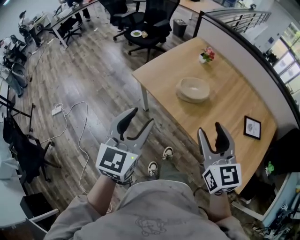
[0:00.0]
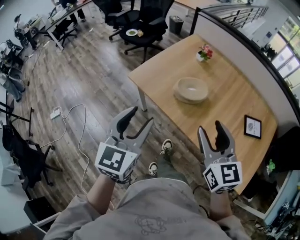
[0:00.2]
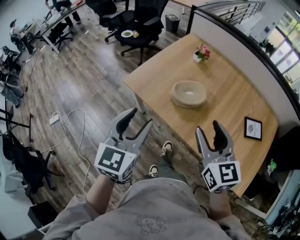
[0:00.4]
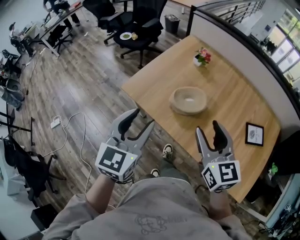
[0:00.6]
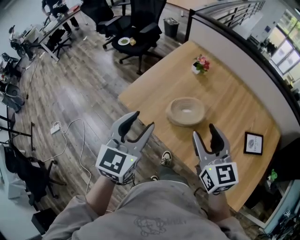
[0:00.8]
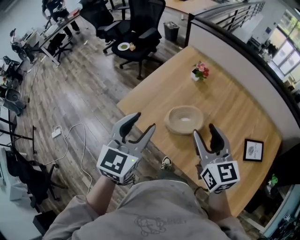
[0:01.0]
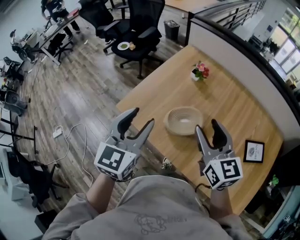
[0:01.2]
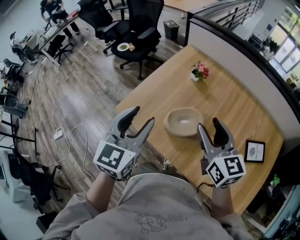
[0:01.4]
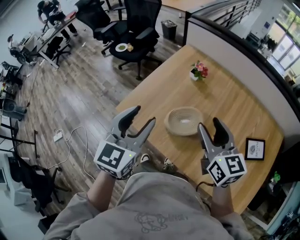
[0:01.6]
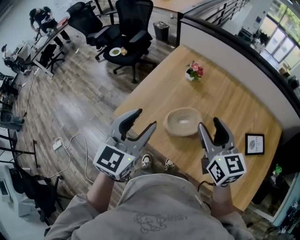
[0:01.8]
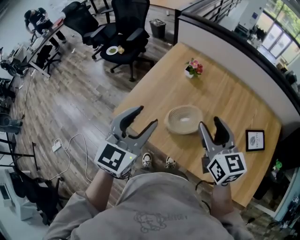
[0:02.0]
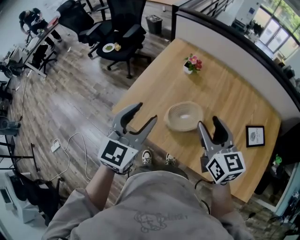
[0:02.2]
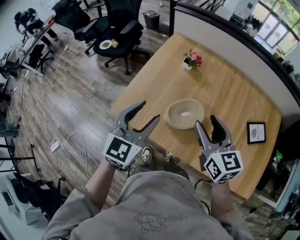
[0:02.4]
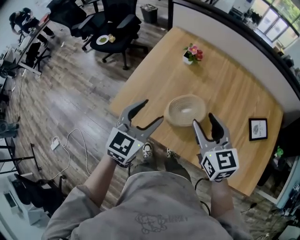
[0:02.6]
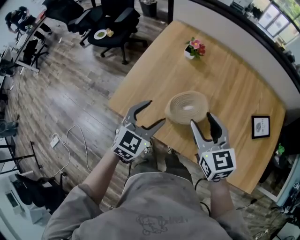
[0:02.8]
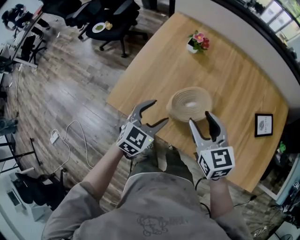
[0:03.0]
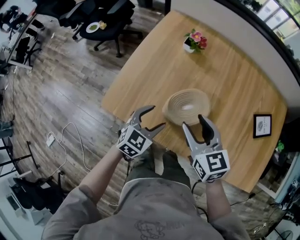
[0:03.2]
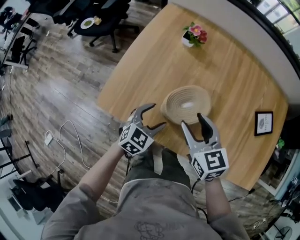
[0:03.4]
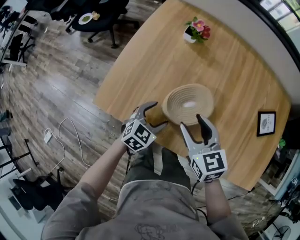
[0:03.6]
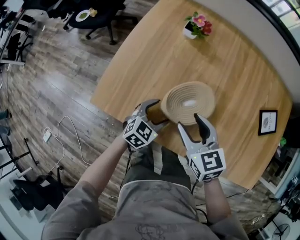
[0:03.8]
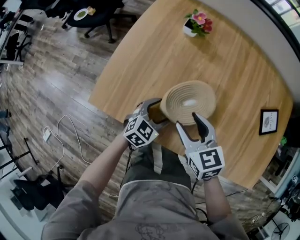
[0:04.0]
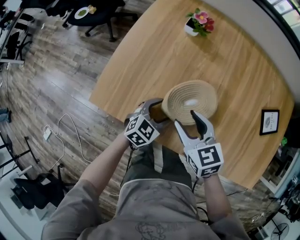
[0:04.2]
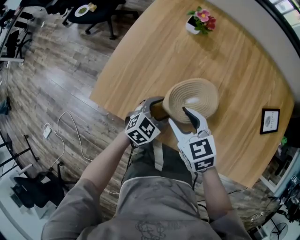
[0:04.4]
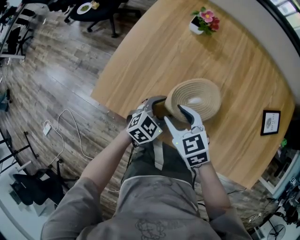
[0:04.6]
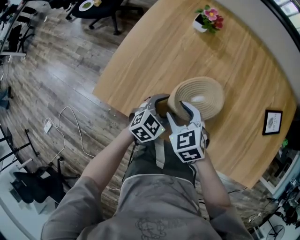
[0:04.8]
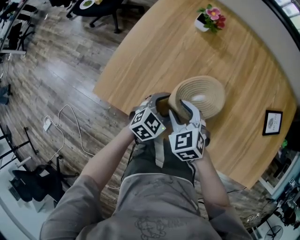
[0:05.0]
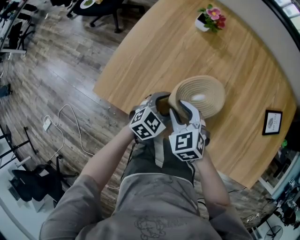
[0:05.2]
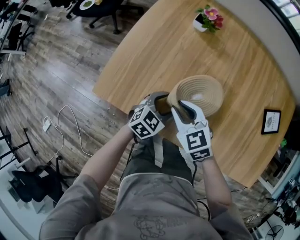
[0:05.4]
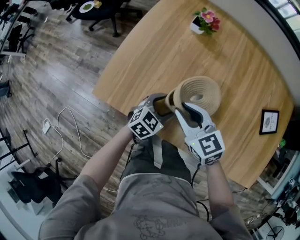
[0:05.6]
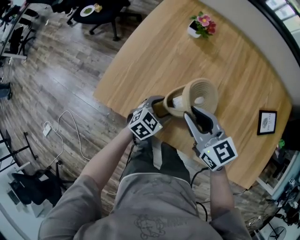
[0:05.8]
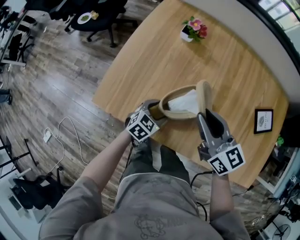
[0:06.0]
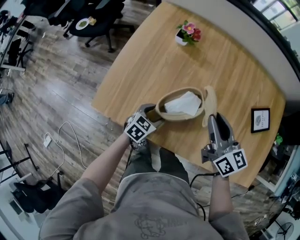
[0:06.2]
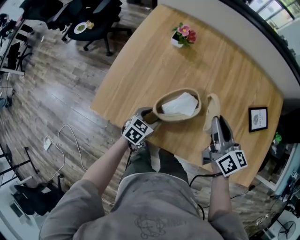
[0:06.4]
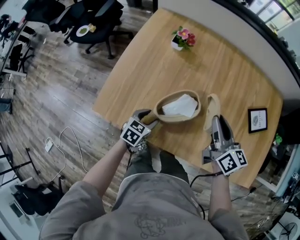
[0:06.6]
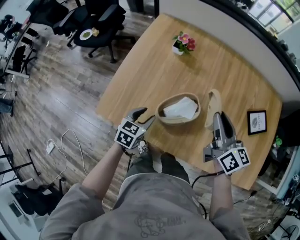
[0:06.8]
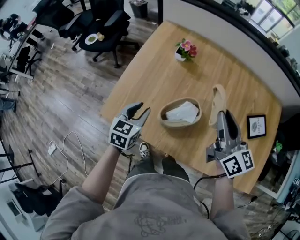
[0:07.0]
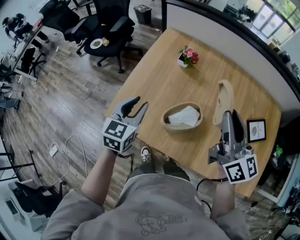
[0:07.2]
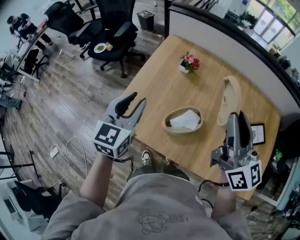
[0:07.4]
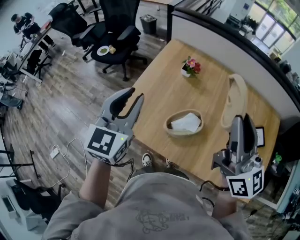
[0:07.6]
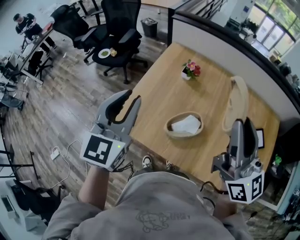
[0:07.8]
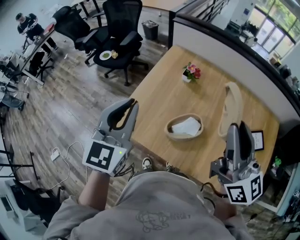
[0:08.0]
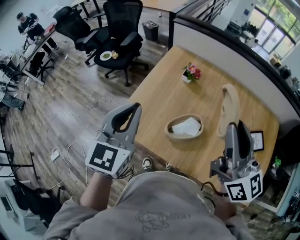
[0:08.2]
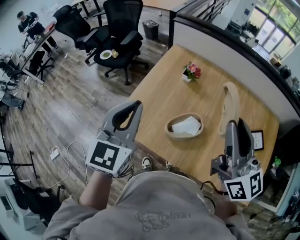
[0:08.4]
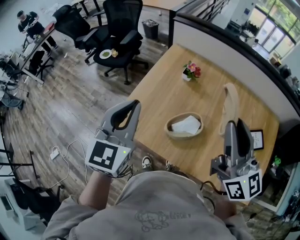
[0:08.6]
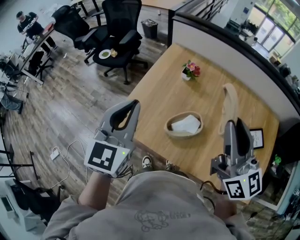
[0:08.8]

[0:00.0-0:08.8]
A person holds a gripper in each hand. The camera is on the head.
0:00.0 to 0:01.4: Both grippers move forward, some 25 cm.
0:01.4 to 0:03.0: The left gripper moves downward, approximately 20 cm, and rotates approximately 30 degrees. The right gripper is displaced downward and to the left by approximately 15 cm.
0:03.0 to 0:04.4: The right gripper moves downward and to the left, approximately 15 cm; the left gripper shifts approximately 15 cm downward.
0:04.4 to 0:05.8: The right gripper travels upward by some 5 cm, turns by roughly 20 degrees, and closes up.
0:05.8 to 0:07.4: The left gripper is displaced upward by approximately 35 cm, rotates about 40 degrees, and closes up; the right gripper goes some 30 cm upward and to the right, and angles its fingers upward, by roughly 30 degrees.
0:07.4 to 0:08.8: The left gripper is displaced upward by about 10 cm, and closes.

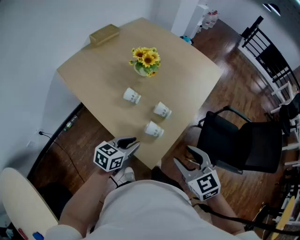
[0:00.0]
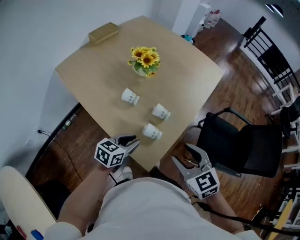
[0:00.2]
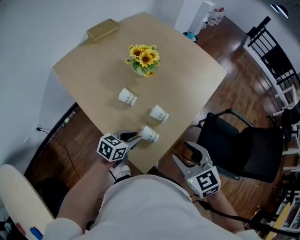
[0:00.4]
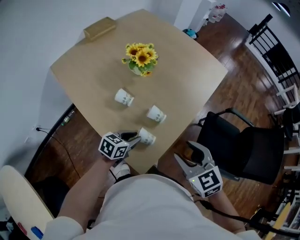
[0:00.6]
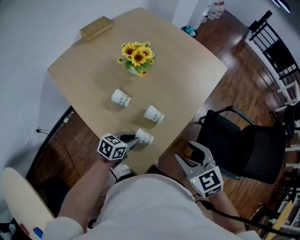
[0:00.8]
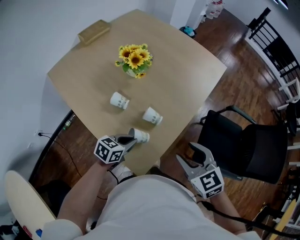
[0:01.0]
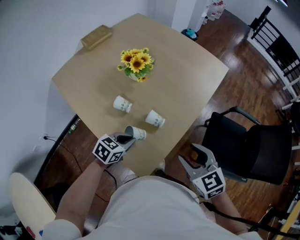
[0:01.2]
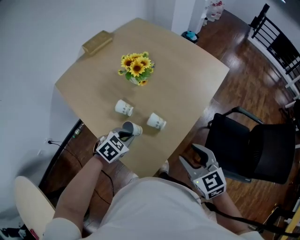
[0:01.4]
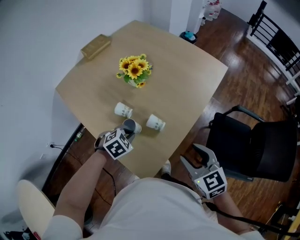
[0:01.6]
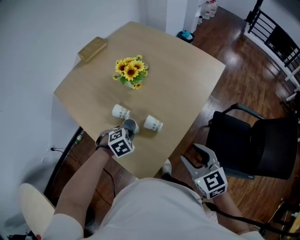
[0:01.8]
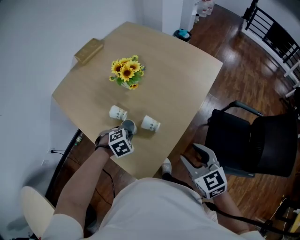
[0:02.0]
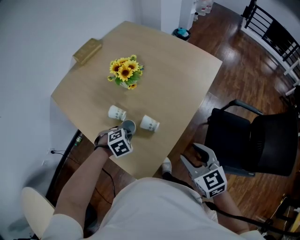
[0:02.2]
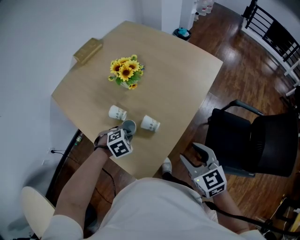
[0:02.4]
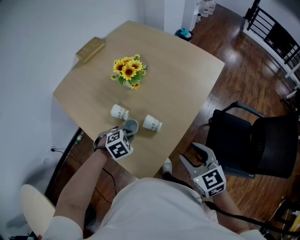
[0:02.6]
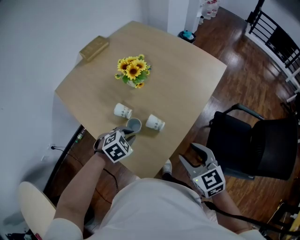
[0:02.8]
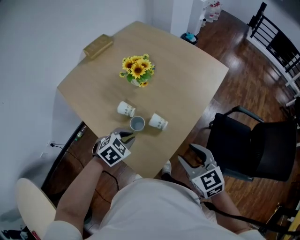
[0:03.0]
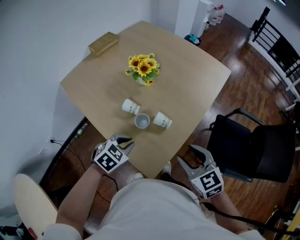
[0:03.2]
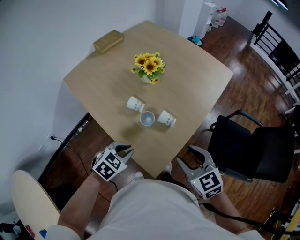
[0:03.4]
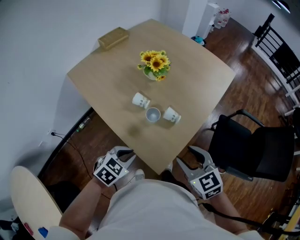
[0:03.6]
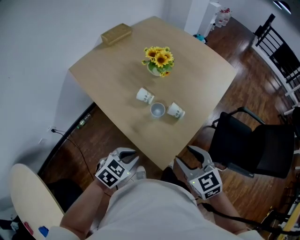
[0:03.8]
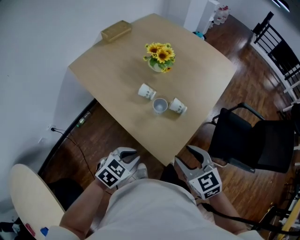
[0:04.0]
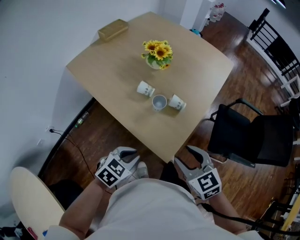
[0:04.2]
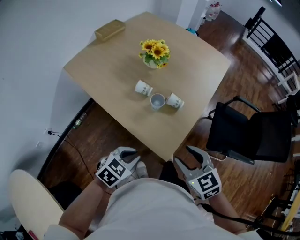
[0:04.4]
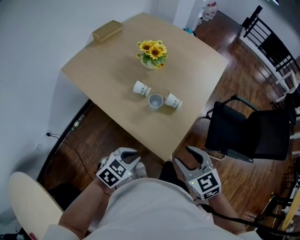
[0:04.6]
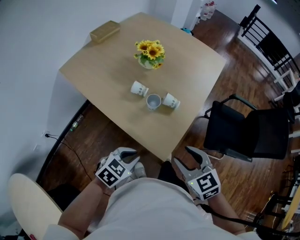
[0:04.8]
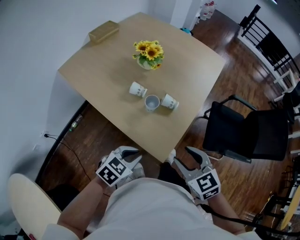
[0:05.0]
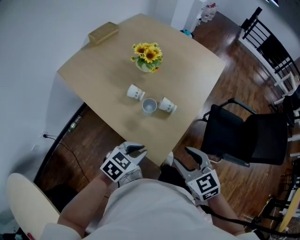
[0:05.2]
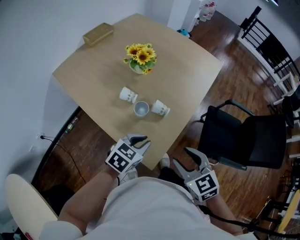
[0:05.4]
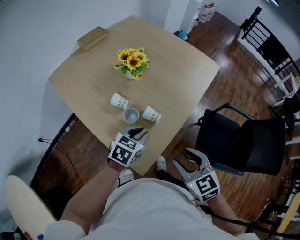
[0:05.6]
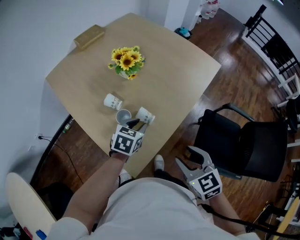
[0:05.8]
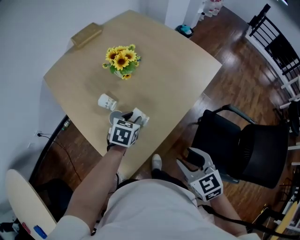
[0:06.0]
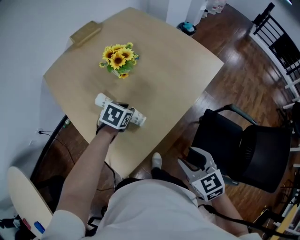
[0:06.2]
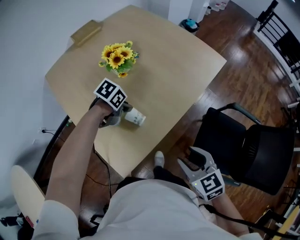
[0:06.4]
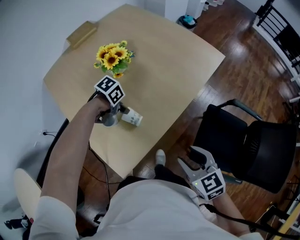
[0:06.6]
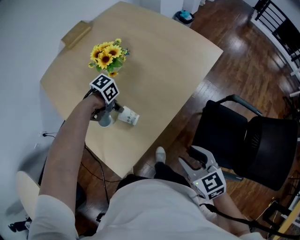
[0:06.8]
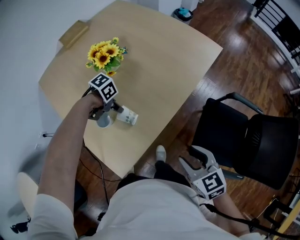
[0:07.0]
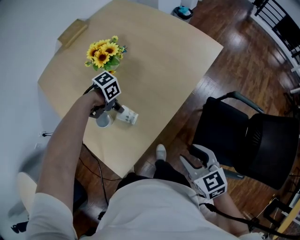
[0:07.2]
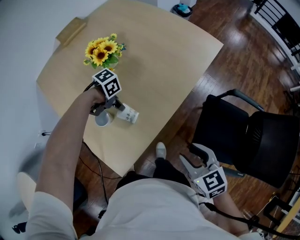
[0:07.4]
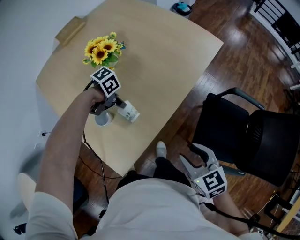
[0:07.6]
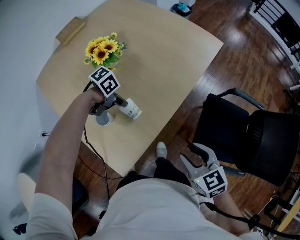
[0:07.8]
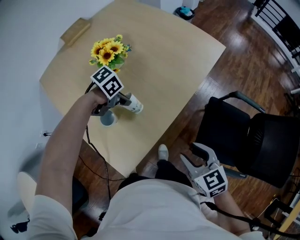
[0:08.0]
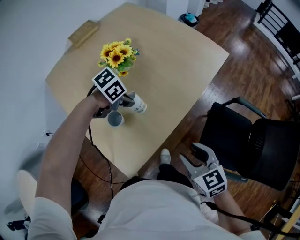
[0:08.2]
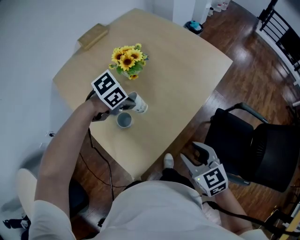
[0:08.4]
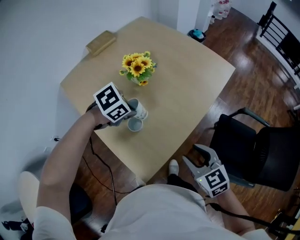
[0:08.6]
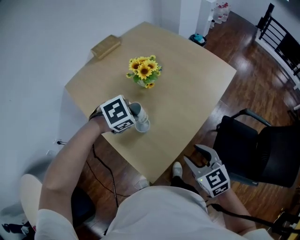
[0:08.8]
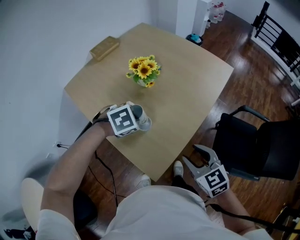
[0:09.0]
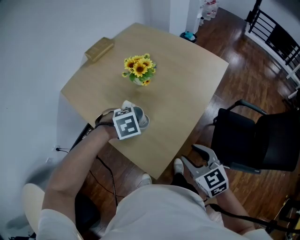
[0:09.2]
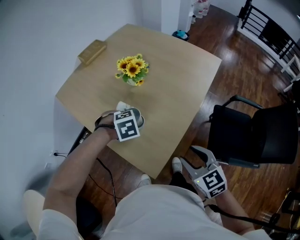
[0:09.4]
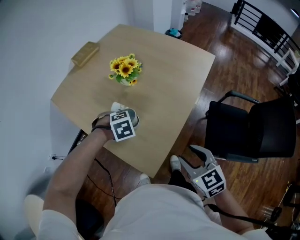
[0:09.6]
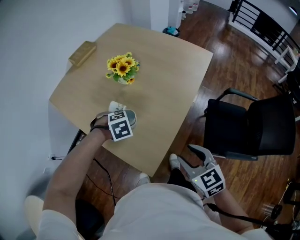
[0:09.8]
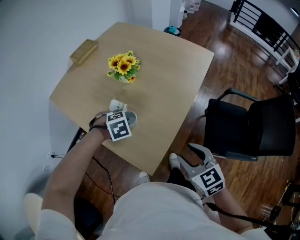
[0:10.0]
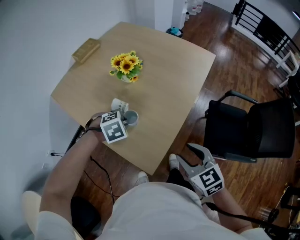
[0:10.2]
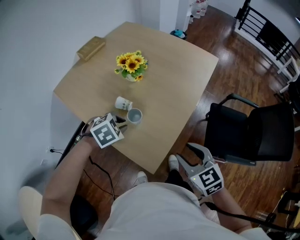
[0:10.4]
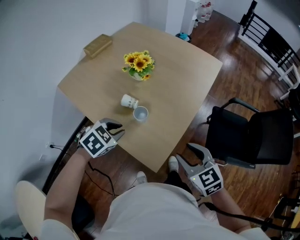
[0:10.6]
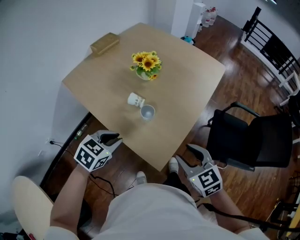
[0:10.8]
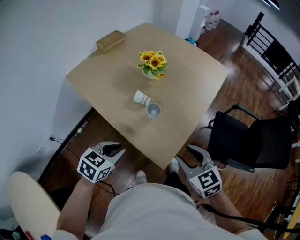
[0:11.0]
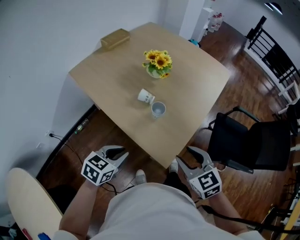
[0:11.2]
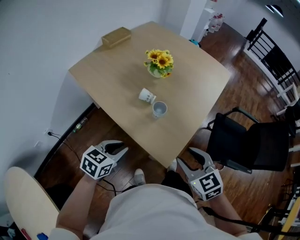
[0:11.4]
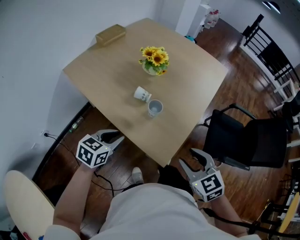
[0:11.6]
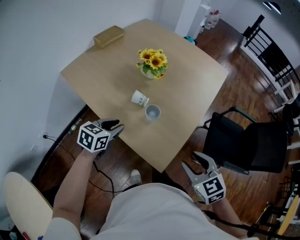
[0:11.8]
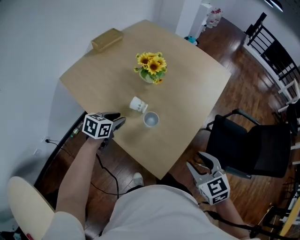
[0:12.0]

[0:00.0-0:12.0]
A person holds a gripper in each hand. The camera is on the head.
0:00.0 to 0:01.6: The right gripper travels forward and to the right by some 15 cm, while the left gripper is displaced forward by about 15 cm, and tips its fingers downward by roughly 40 degrees.
0:01.6 to 0:03.0: The grippers stay close to where they were, moving slightly.
0:03.0 to 0:04.4: The left gripper moves backward, approximately 20 cm, while the right gripper goes roughly 15 cm backward and to the left.
0:04.4 to 0:06.0: The left gripper shifts some 35 cm forward and to the right, changes its angle by roughly 30 degrees, and opens up; the right gripper heads to the right and forward, covering some 25 cm.
0:06.0 to 0:07.6: The right gripper ends up about 10 cm from where it was. Meanwhile the left gripper is displaced downward by about 5 cm, swivels approximately 60 degrees, and closes its fingers.
0:07.6 to 0:09.0: The left gripper heads upward, covering some 15 cm, and rotates roughly 50 degrees; the right gripper shifts by approximately 15 cm.
0:09.0 to 0:10.4: The left gripper reaches approximately 10 cm downward, then returns.
0:10.4 to 0:12.0: The right gripper reaches approximately 10 cm to the left, then returns, while the left gripper heads to the left, covering some 10 cm, reaches roughly 20 cm backward, then returns, and twists about 40 degrees counterclockwise, seen from behind.

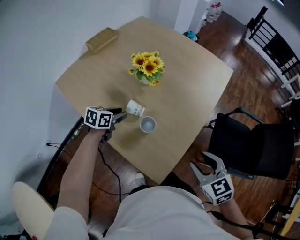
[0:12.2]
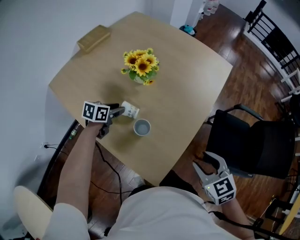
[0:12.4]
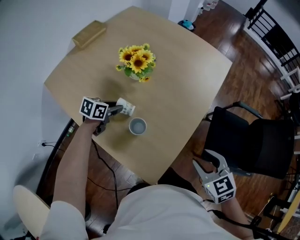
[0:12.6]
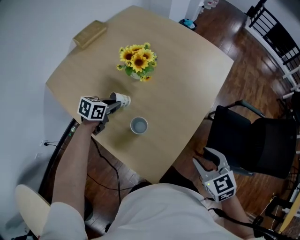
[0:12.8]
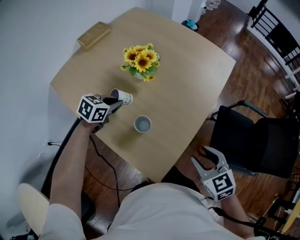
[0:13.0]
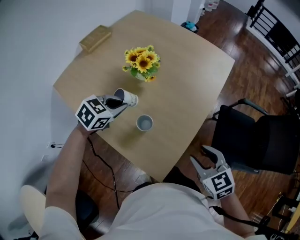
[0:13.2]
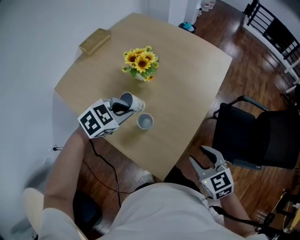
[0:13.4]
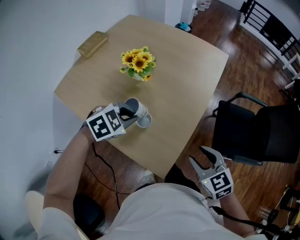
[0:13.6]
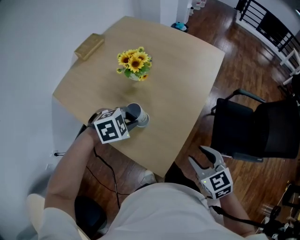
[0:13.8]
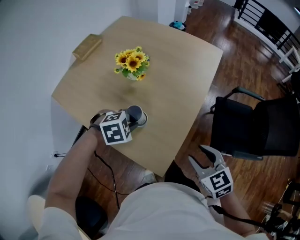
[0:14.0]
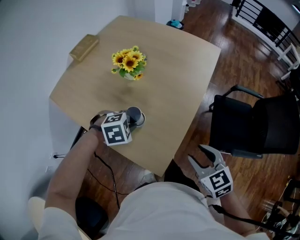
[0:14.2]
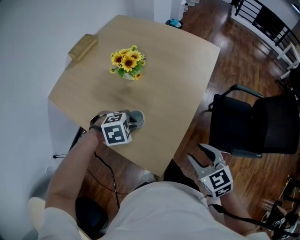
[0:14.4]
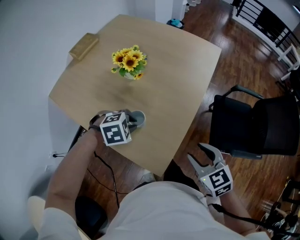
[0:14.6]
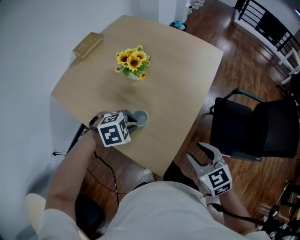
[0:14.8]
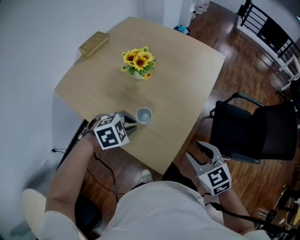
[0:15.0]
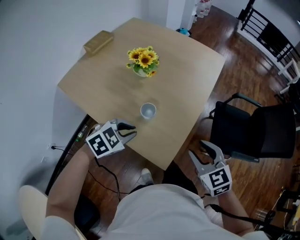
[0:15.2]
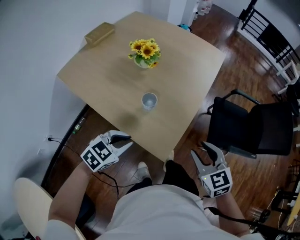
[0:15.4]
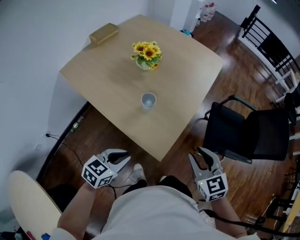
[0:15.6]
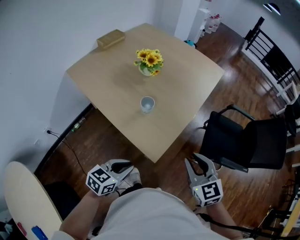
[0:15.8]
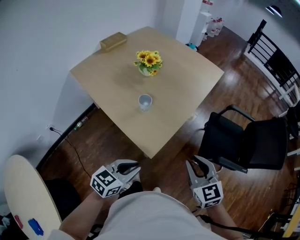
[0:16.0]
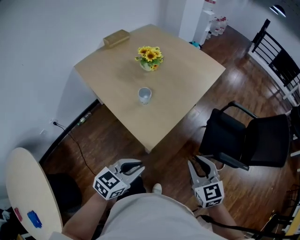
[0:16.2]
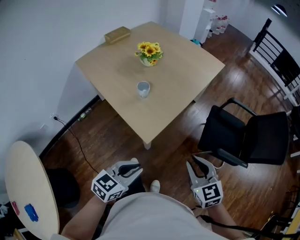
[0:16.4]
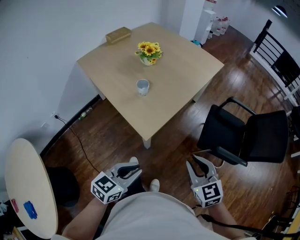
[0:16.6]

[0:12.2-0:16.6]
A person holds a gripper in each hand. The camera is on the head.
0:12.2 to 0:13.6: The left gripper is displaced to the right, upward and backward by approximately 15 cm, rotates around the line of its fingers by about 60 degrees, clockwise from behind, and closes.
0:13.6 to 0:15.2: The left gripper heads backward, covering about 10 cm.
0:15.2 to 0:16.6: The left gripper moves backward and to the right, approximately 35 cm, and turns by about 50 degrees, while the right gripper is displaced backward and to the right by some 25 cm, and closes up.